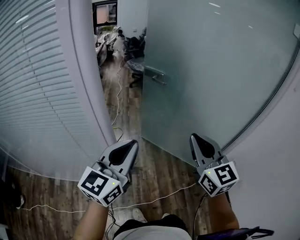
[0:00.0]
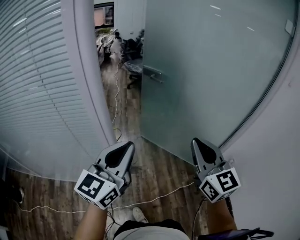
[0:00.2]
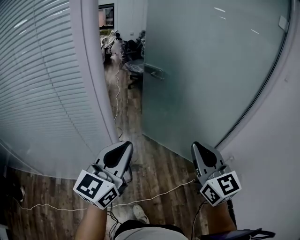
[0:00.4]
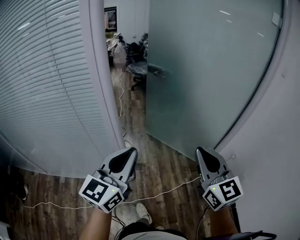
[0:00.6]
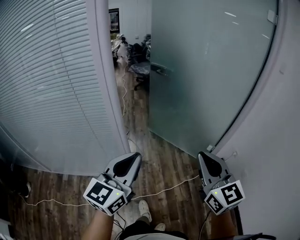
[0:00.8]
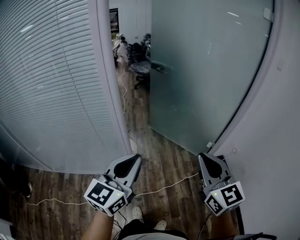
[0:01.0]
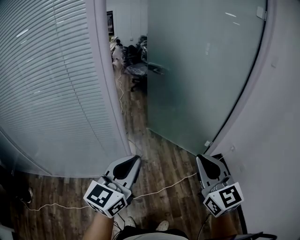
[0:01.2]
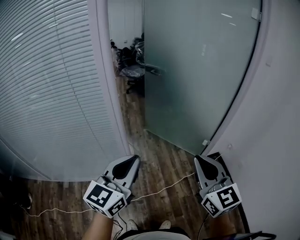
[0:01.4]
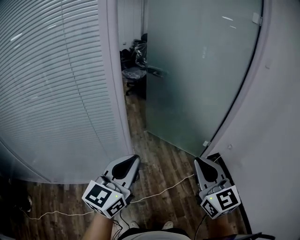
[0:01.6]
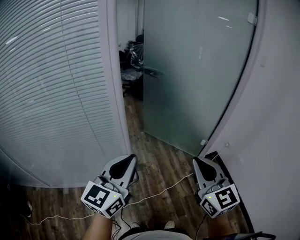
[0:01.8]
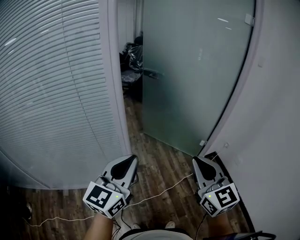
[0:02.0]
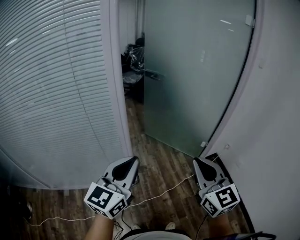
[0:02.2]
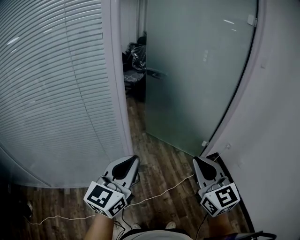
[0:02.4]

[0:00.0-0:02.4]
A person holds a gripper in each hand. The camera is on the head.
0:00.0 to 0:01.2: The grippers both shift backward by approximately 25 cm.
0:01.2 to 0:02.4: Both grippers move to the left, some 5 cm.

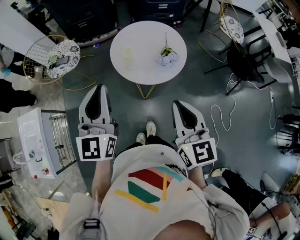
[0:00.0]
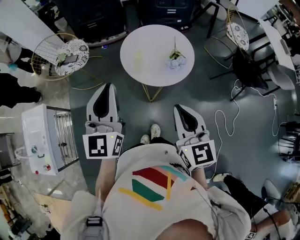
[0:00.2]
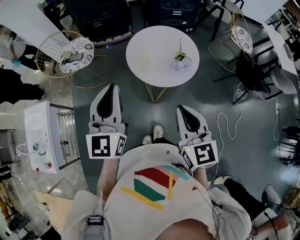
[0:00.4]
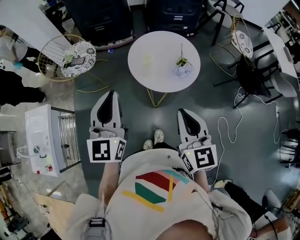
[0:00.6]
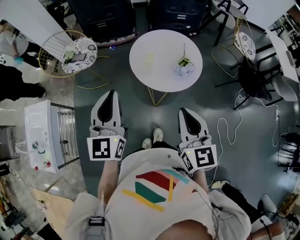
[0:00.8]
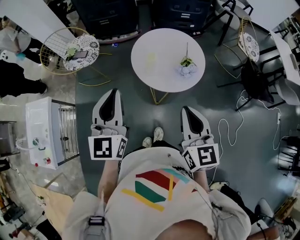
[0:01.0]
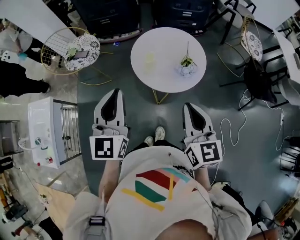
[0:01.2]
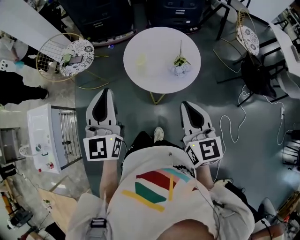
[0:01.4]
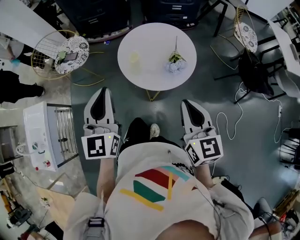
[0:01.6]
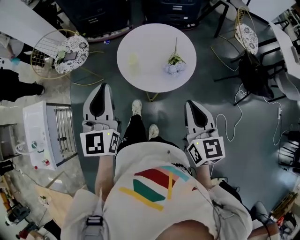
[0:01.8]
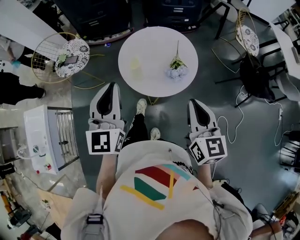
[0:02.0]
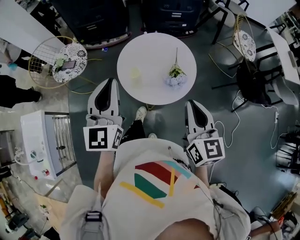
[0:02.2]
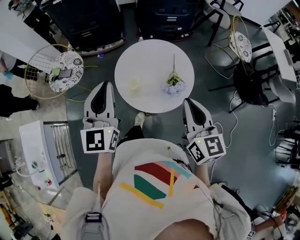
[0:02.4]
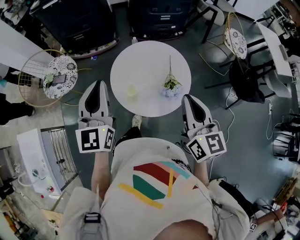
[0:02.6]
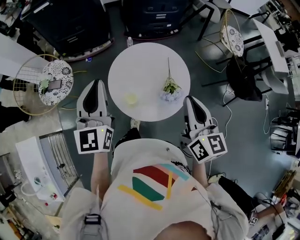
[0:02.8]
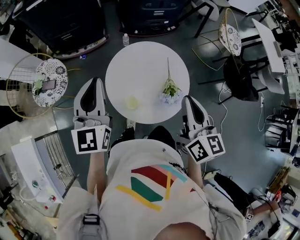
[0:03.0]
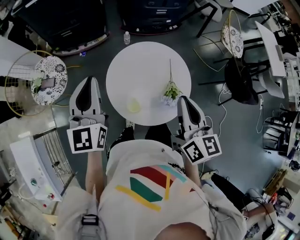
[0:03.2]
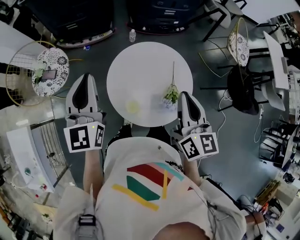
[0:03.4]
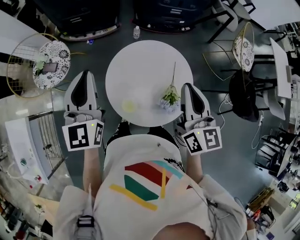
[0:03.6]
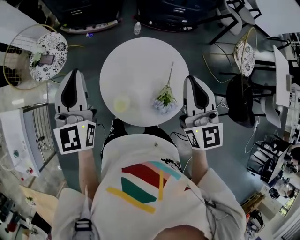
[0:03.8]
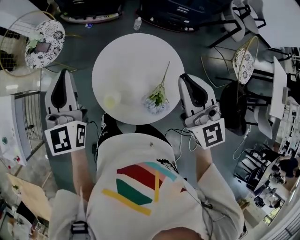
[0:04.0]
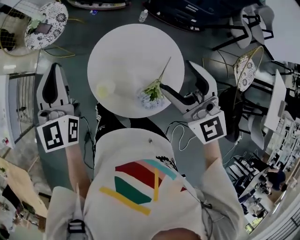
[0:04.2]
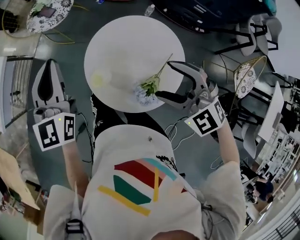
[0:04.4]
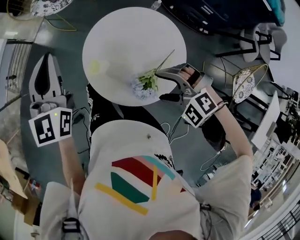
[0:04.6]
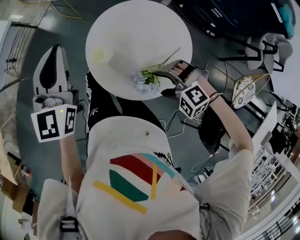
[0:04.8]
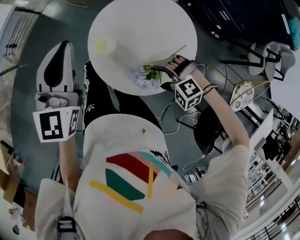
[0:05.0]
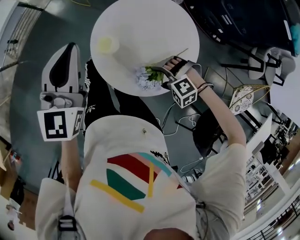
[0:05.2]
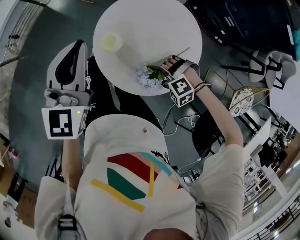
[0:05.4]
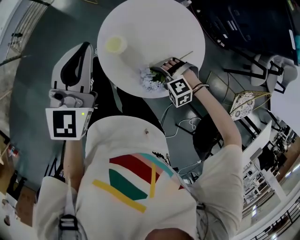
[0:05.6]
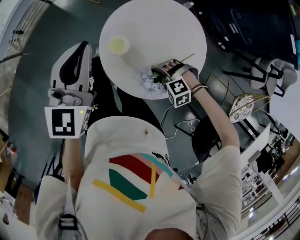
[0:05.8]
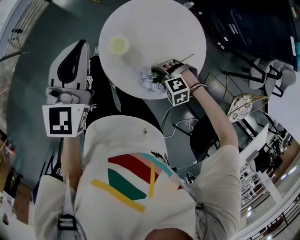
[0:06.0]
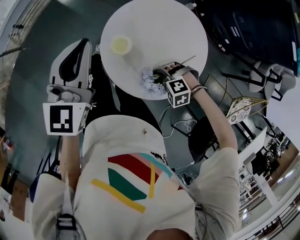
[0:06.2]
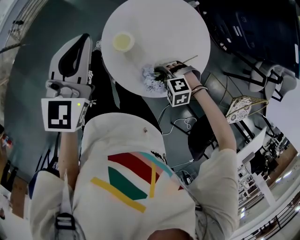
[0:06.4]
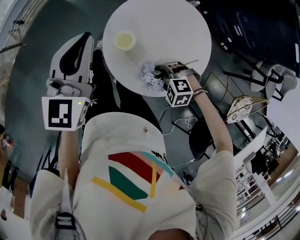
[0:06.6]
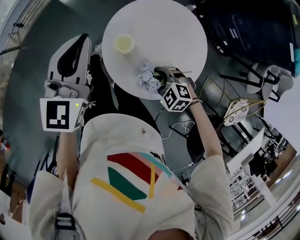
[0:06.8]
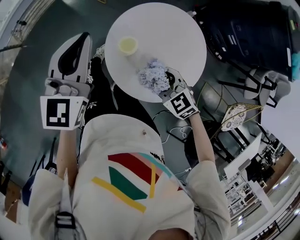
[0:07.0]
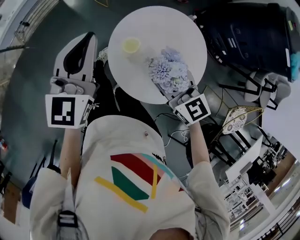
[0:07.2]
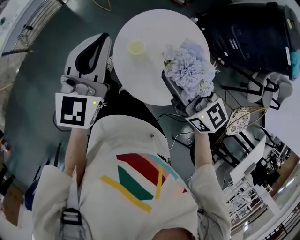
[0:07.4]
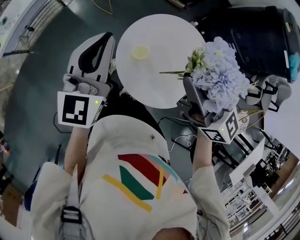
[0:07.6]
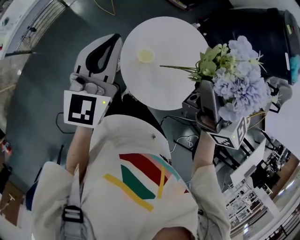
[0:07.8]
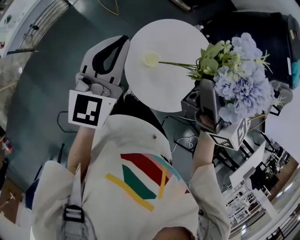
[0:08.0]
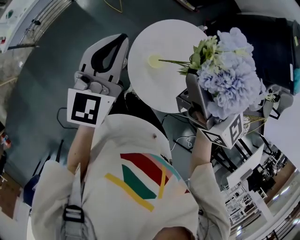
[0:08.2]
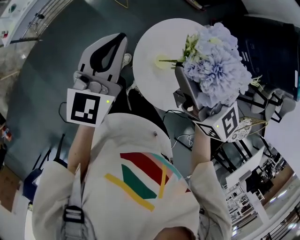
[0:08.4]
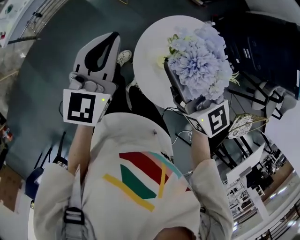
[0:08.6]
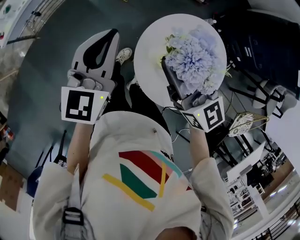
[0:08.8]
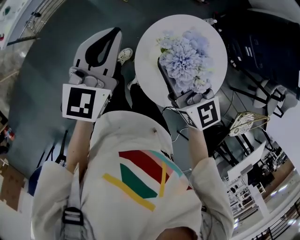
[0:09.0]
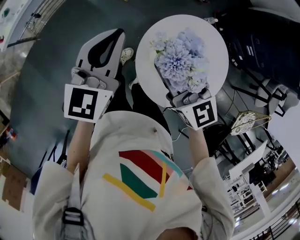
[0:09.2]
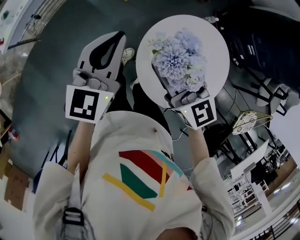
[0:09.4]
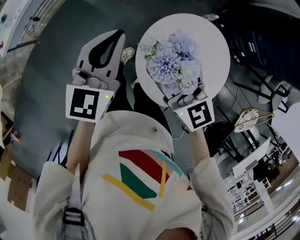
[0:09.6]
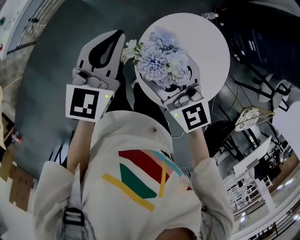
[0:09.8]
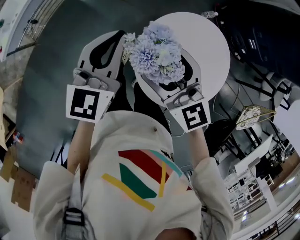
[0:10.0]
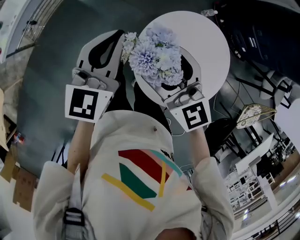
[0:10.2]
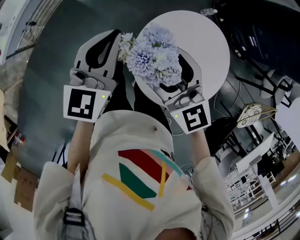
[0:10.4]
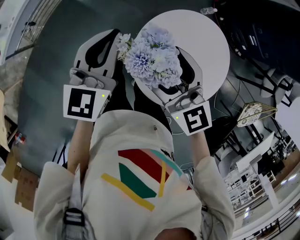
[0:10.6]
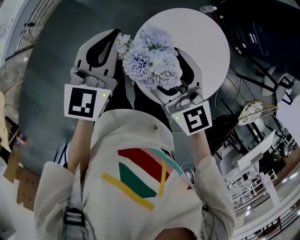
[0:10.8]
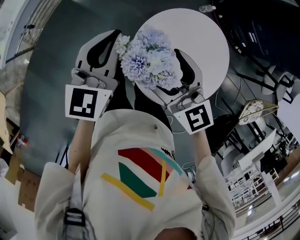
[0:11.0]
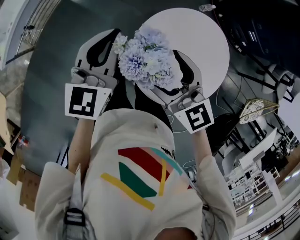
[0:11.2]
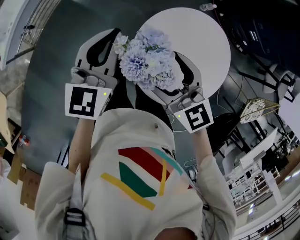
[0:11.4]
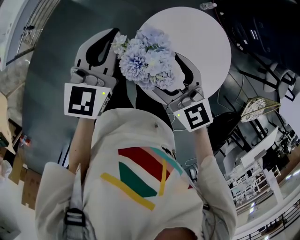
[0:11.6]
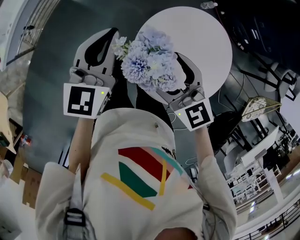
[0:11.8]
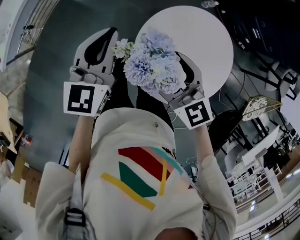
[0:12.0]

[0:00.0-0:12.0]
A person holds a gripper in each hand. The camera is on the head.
0:00.0 to 0:01.6: The right gripper heads forward, covering approximately 5 cm.
0:01.6 to 0:03.0: The grippers both shift forward by about 25 cm. The right gripper changes its angle by roughly 20 degrees.
0:03.0 to 0:04.4: The left gripper ends up some 5 cm from where it was, and turns by roughly 40 degrees. The right gripper ends up some 10 cm from where it was, rotates about 110 degrees, and opens its fingers.
0:04.4 to 0:06.0: The left gripper ends up about 10 cm from where it was. The right gripper shifts roughly 30 cm downward, and angles its fingers downward, by some 40 degrees.
0:06.0 to 0:07.6: The left gripper goes roughly 5 cm upward; the right gripper moves upward, approximately 40 cm, and tilts its fingers approximately 80 degrees upward.
0:07.6 to 0:09.0: The left gripper moves forward and downward, approximately 5 cm, while the right gripper is displaced downward, to the left and forward by approximately 15 cm.
0:09.0 to 0:10.4: There are only small adjustments of the grippers.
0:10.4 to 0:12.0: The right gripper is displaced downward by about 5 cm.

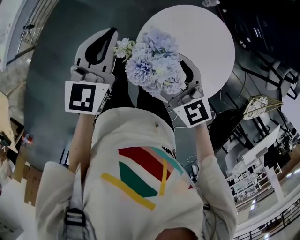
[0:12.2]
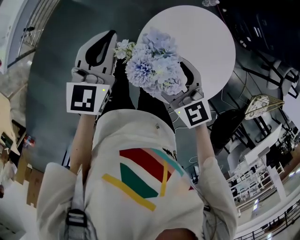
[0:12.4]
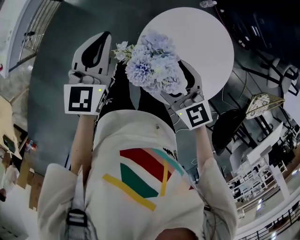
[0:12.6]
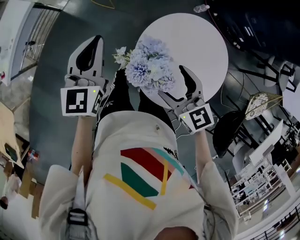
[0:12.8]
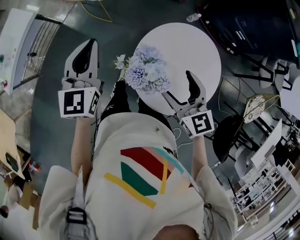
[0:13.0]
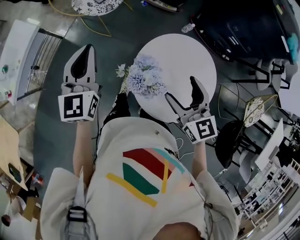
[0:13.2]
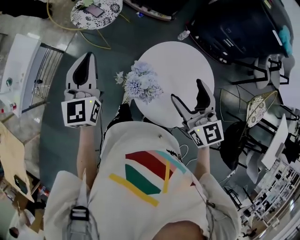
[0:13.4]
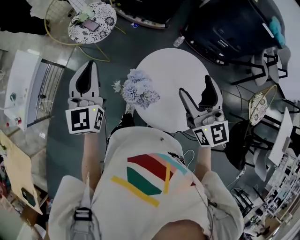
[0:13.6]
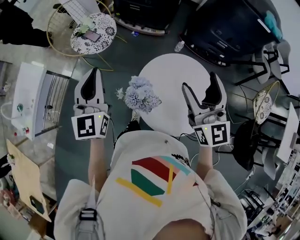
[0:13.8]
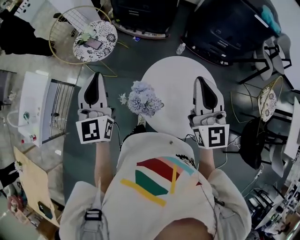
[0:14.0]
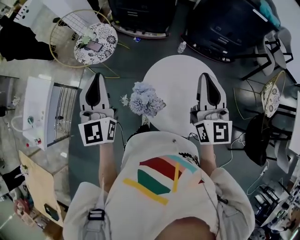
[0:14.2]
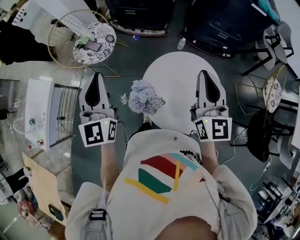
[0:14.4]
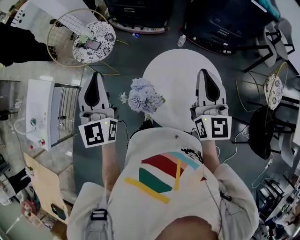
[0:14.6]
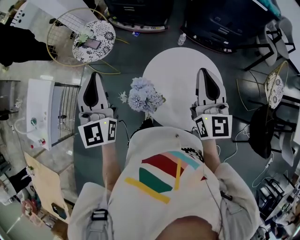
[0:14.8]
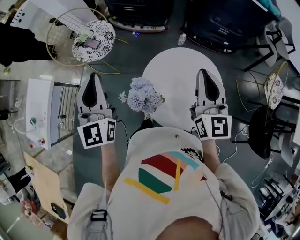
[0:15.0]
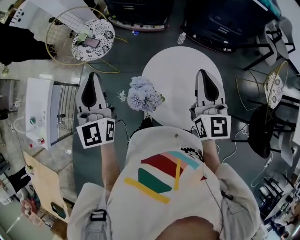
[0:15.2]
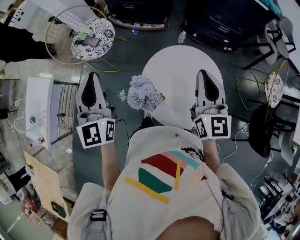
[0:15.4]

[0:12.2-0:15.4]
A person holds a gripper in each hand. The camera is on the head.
0:12.2 to 0:13.8: The right gripper moves upward and to the right, roughly 25 cm, and angles its fingers upward, by approximately 30 degrees; the left gripper is displaced upward by some 15 cm, and changes its angle by about 20 degrees.
0:13.8 to 0:15.4: The right gripper closes its fingers.

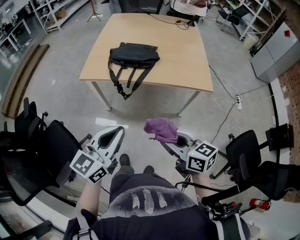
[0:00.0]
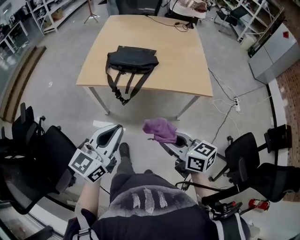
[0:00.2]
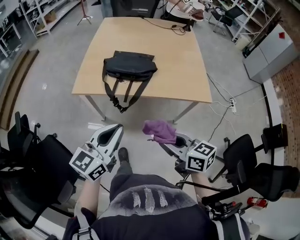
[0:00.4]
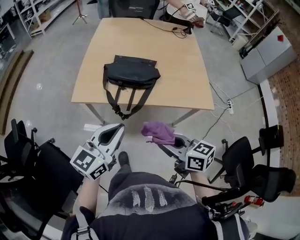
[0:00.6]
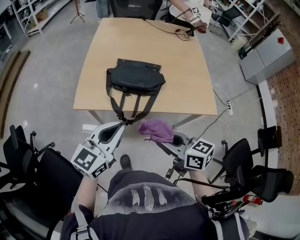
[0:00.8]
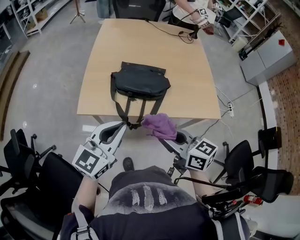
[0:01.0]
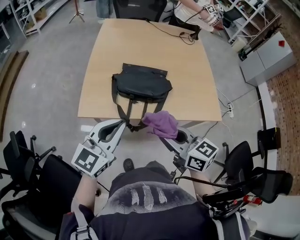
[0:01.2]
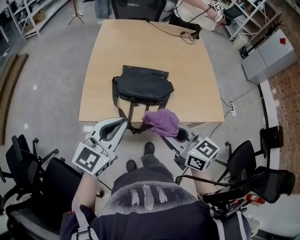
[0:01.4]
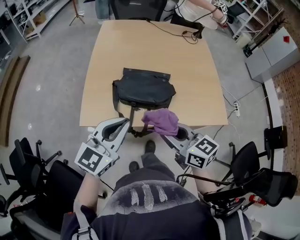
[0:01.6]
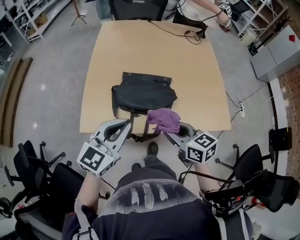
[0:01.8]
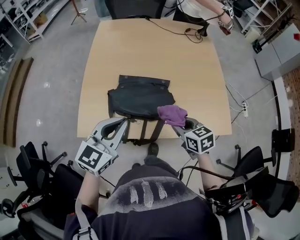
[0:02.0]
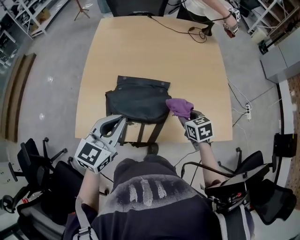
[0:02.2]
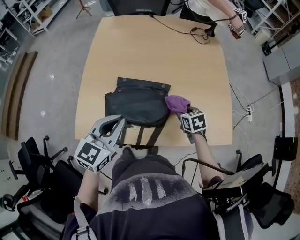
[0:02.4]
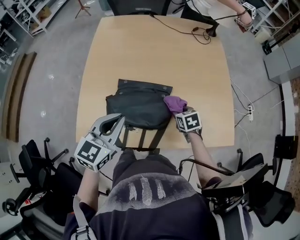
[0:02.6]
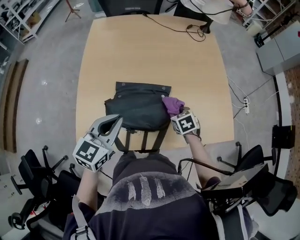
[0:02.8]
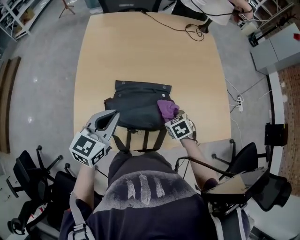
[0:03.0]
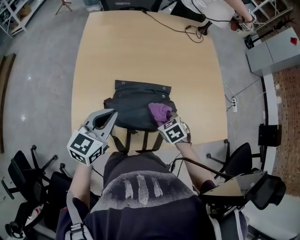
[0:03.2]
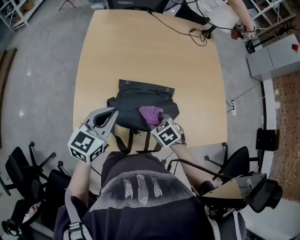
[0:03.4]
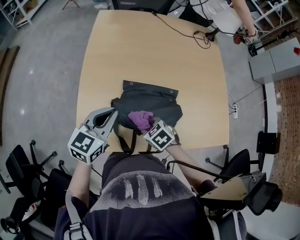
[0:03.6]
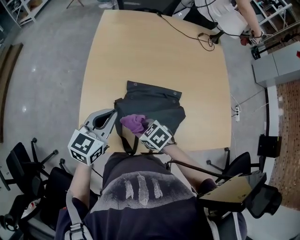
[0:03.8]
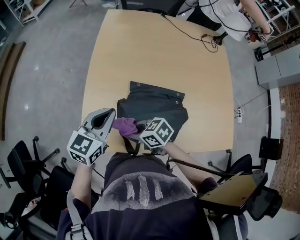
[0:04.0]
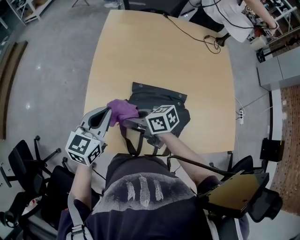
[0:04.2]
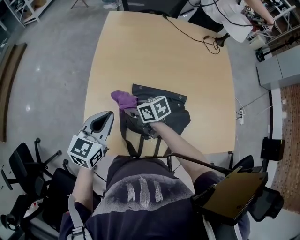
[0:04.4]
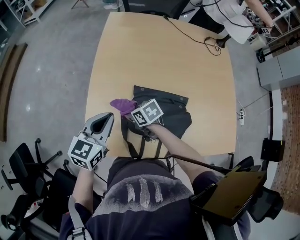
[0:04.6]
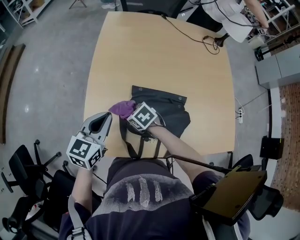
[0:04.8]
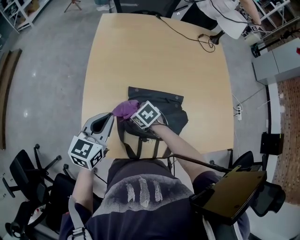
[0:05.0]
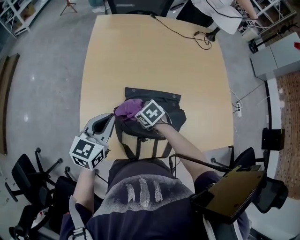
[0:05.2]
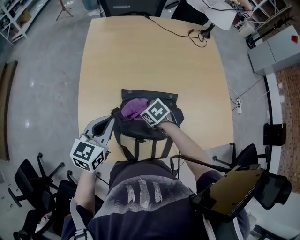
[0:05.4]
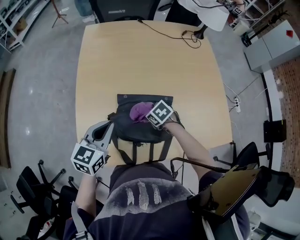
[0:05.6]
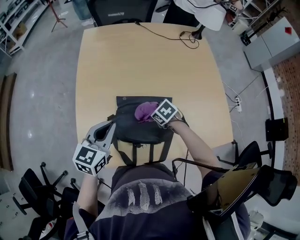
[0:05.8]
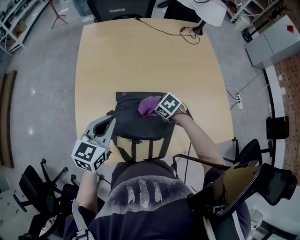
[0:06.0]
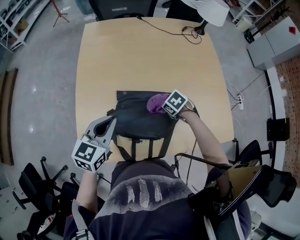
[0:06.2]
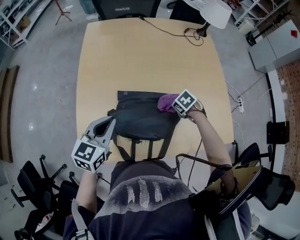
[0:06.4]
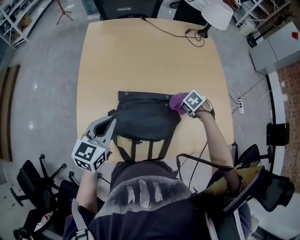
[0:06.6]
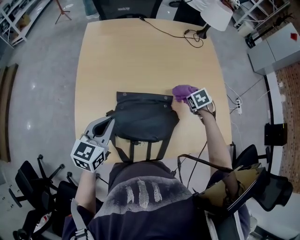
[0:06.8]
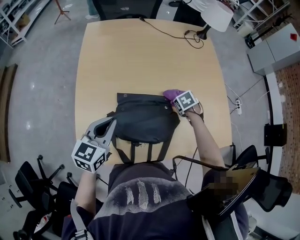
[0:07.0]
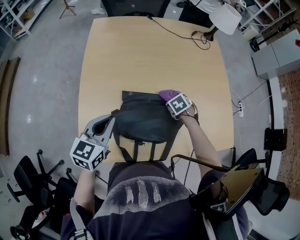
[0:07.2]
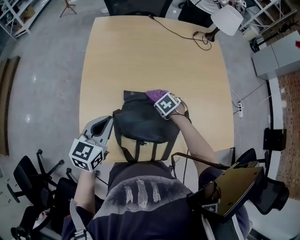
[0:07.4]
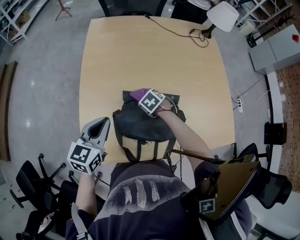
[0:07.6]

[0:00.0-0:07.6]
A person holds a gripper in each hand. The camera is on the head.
0:00.0 to 0:01.6: Both grippers travel together forward, about 35 cm.
0:01.6 to 0:03.0: The right gripper goes some 30 cm forward and downward, and points its fingers some 50 degrees further downward. The left gripper heads forward, covering roughly 20 cm.
0:03.0 to 0:04.6: The left gripper moves approximately 10 cm, while the right gripper travels upward and back again, about 10 cm each way, and turns by some 30 degrees.
0:04.6 to 0:06.0: The right gripper travels to the right by approximately 20 cm, and turns by approximately 20 degrees. Meanwhile the left gripper moves to the right, about 10 cm.
0:06.0 to 0:07.6: The left gripper shifts by about 5 cm.
